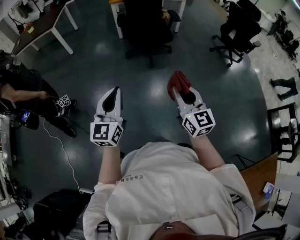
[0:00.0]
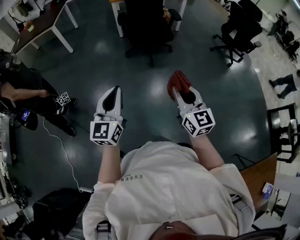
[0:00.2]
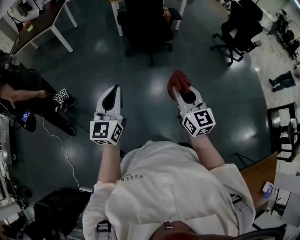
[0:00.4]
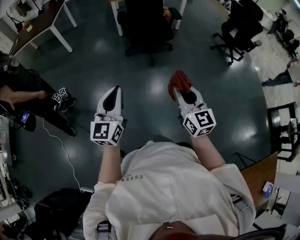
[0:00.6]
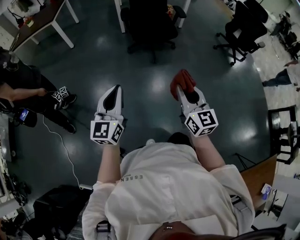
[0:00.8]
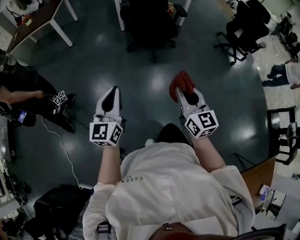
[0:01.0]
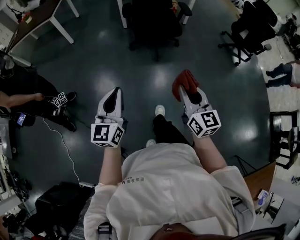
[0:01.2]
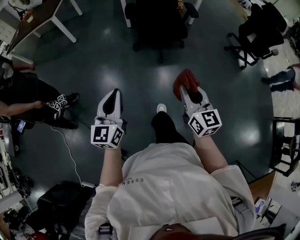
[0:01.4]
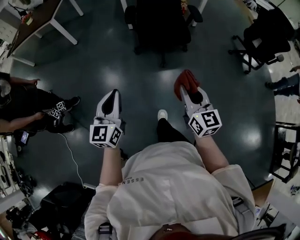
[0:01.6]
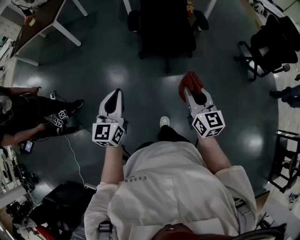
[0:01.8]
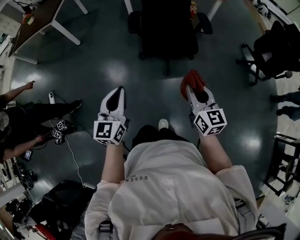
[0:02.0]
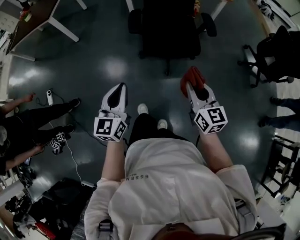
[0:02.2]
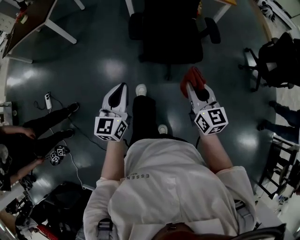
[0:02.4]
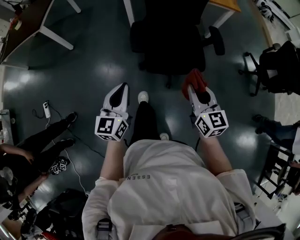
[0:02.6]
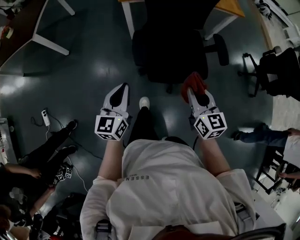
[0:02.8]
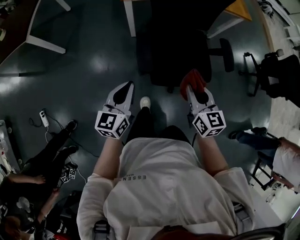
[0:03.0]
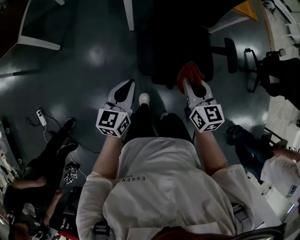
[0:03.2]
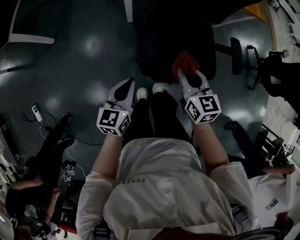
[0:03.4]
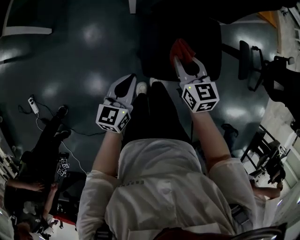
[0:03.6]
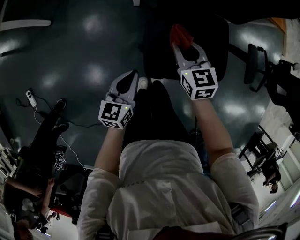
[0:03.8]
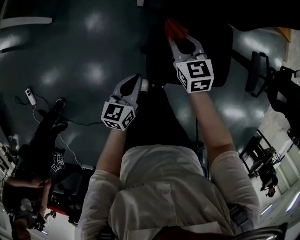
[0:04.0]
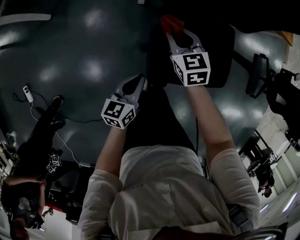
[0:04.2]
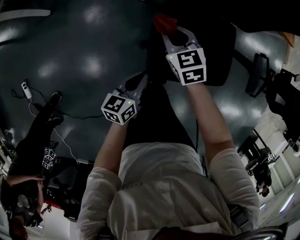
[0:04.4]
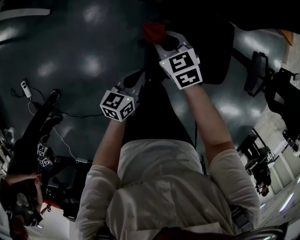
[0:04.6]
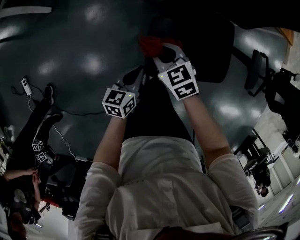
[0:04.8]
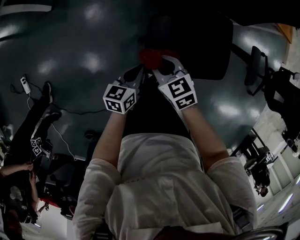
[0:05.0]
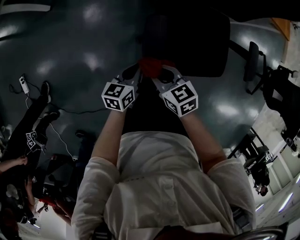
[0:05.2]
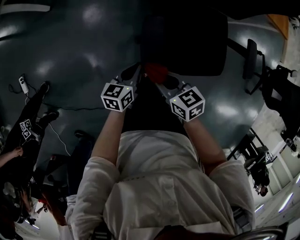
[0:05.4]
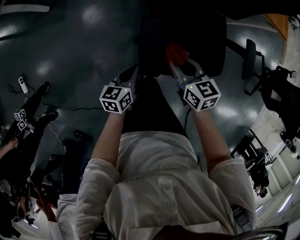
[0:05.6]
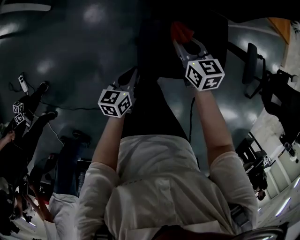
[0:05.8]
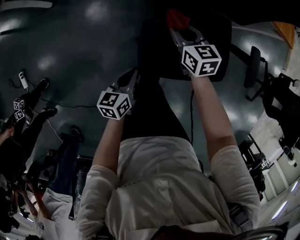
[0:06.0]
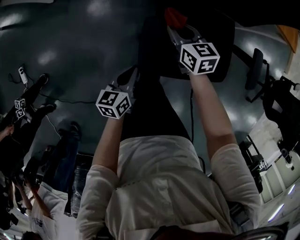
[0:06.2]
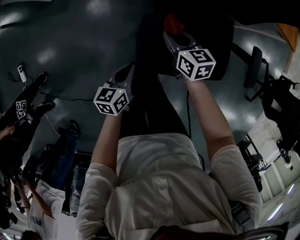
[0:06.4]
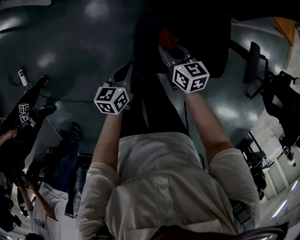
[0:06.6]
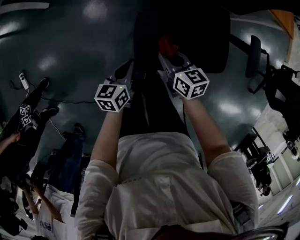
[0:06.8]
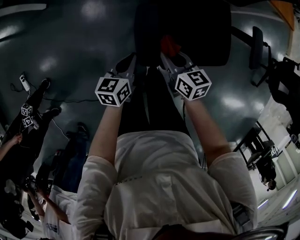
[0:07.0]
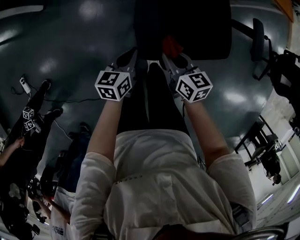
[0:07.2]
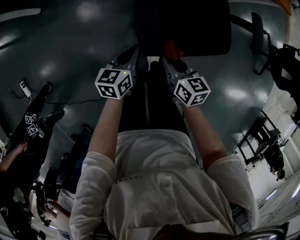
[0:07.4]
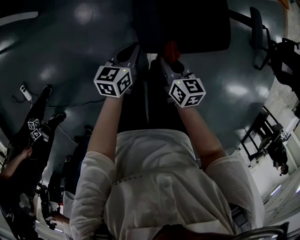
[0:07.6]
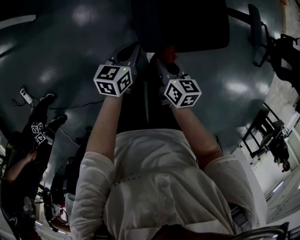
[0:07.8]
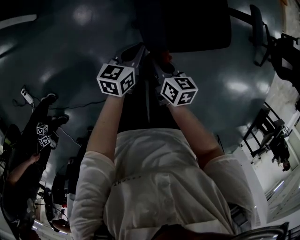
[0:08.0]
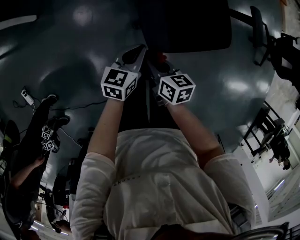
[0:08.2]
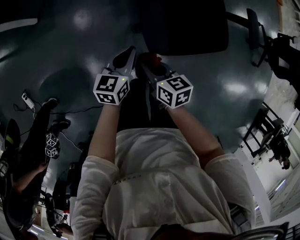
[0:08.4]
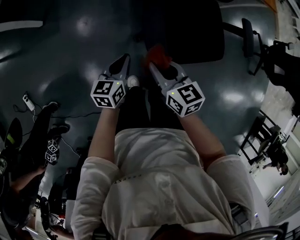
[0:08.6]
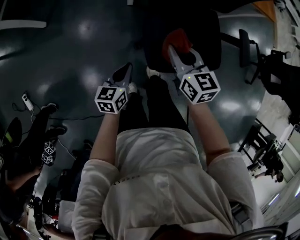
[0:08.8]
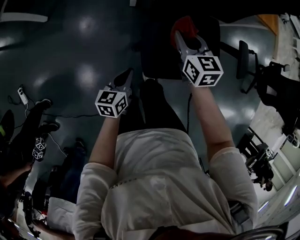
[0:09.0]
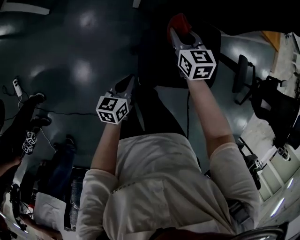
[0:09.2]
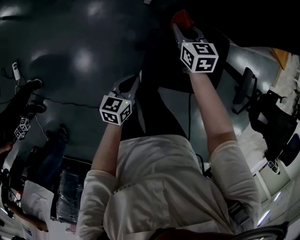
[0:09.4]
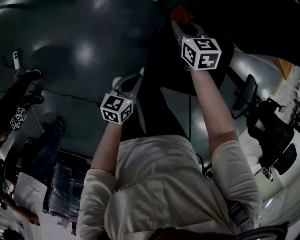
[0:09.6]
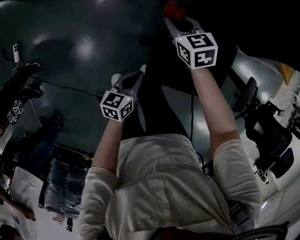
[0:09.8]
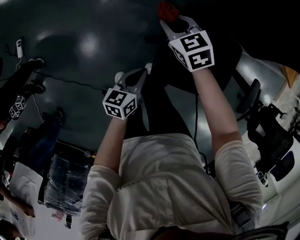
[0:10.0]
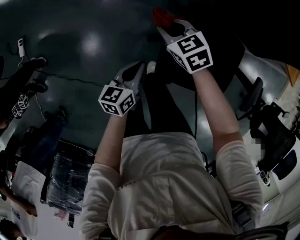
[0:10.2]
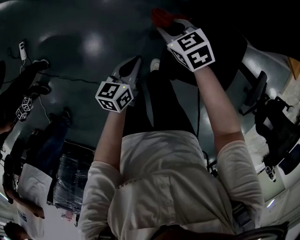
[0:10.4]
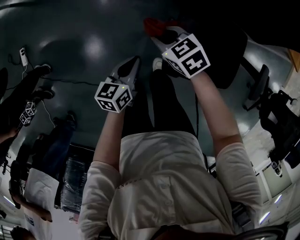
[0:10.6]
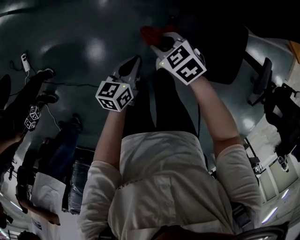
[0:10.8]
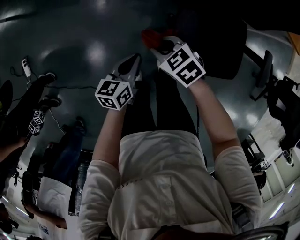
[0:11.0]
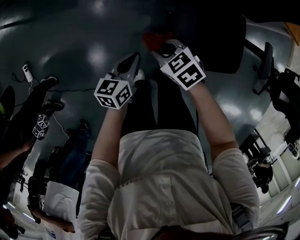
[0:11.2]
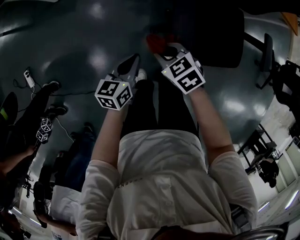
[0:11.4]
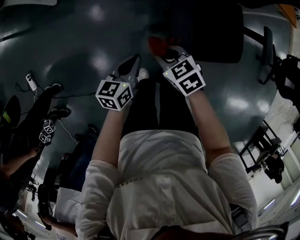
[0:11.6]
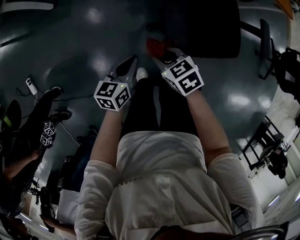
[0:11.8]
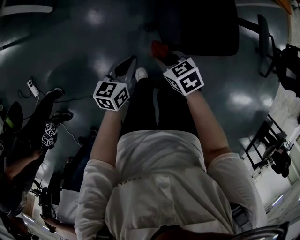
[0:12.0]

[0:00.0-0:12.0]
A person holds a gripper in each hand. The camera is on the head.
0:00.0 to 0:01.6: Both grippers move forward, some 25 cm.
0:01.6 to 0:03.0: The pair of grippers is taken forward, some 50 cm.
0:03.0 to 0:04.4: The left gripper goes some 25 cm downward and forward, and turns by about 30 degrees, while the right gripper heads forward, downward and to the left, covering some 35 cm, and changes its angle by some 30 degrees.
0:04.4 to 0:06.0: The right gripper is displaced to the right by roughly 5 cm, and travels backward and back again, some 20 cm each way.
0:06.0 to 0:07.6: The right gripper shifts some 25 cm backward, and swivels about 30 degrees.
0:07.6 to 0:09.0: The right gripper travels forward and upward by roughly 25 cm, and swivels about 20 degrees.
0:09.0 to 0:10.4: The right gripper moves some 20 cm, and turns by approximately 50 degrees.
0:10.4 to 0:12.0: The left gripper is displaced backward by about 5 cm, and rotates some 20 degrees. The right gripper travels backward by about 20 cm, and turns by some 30 degrees.

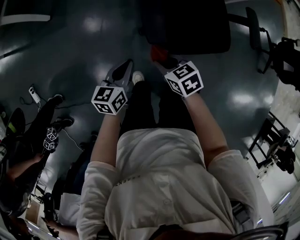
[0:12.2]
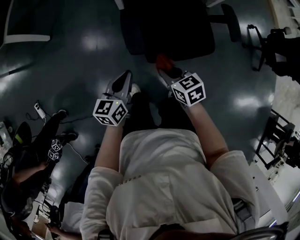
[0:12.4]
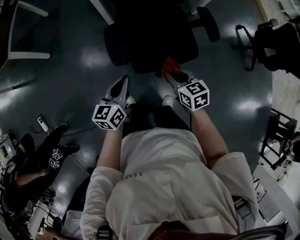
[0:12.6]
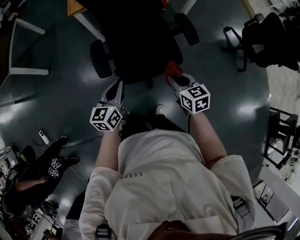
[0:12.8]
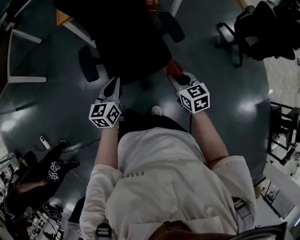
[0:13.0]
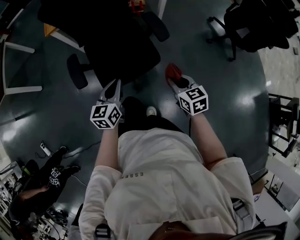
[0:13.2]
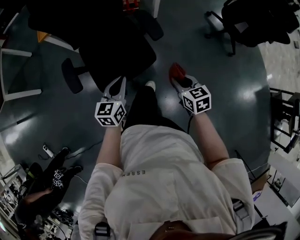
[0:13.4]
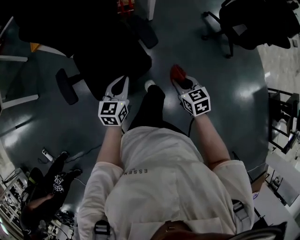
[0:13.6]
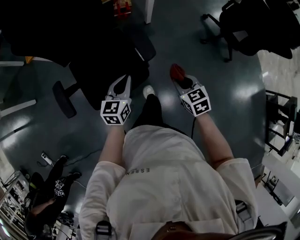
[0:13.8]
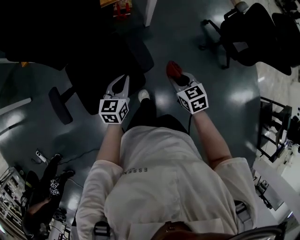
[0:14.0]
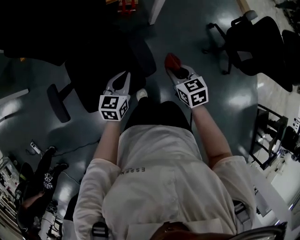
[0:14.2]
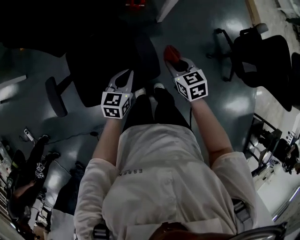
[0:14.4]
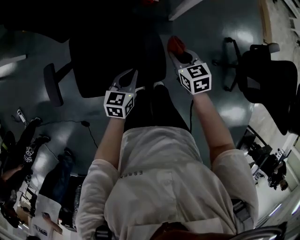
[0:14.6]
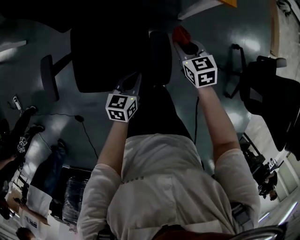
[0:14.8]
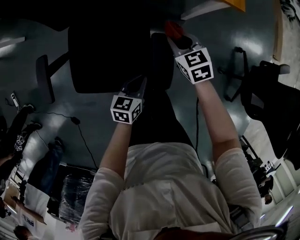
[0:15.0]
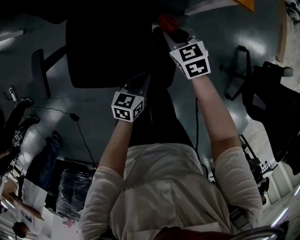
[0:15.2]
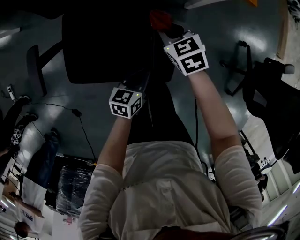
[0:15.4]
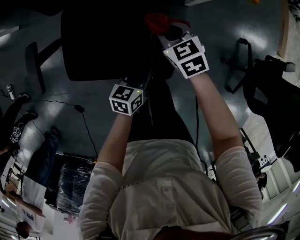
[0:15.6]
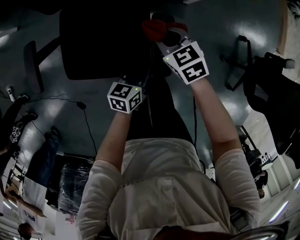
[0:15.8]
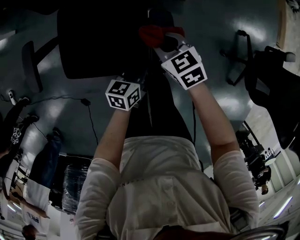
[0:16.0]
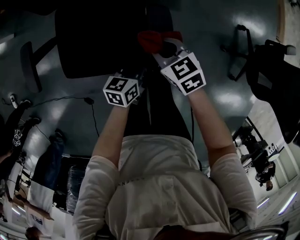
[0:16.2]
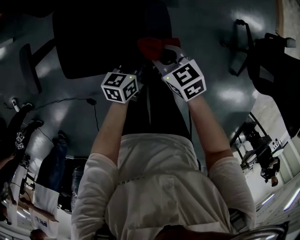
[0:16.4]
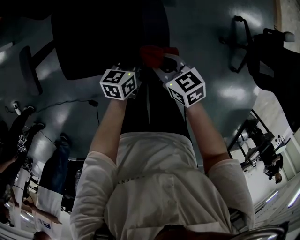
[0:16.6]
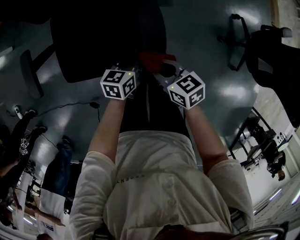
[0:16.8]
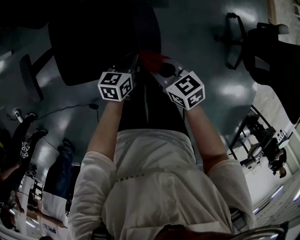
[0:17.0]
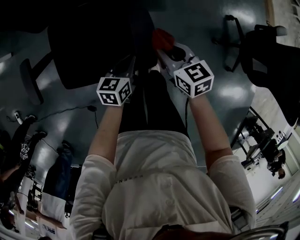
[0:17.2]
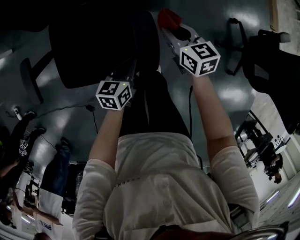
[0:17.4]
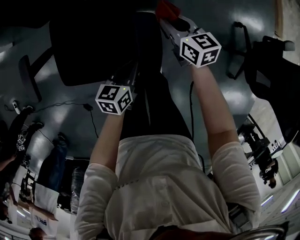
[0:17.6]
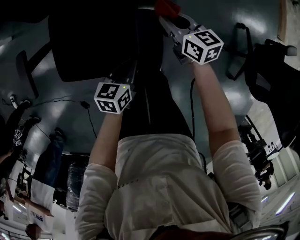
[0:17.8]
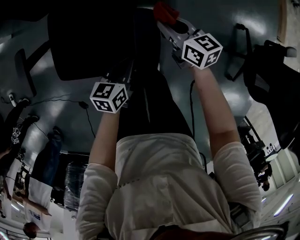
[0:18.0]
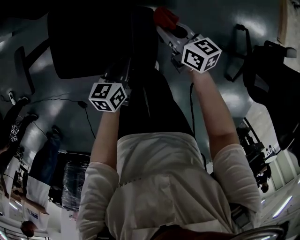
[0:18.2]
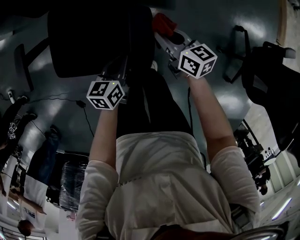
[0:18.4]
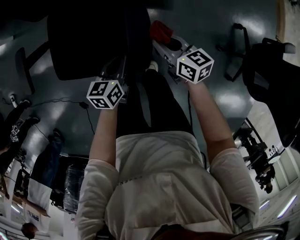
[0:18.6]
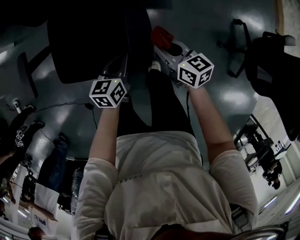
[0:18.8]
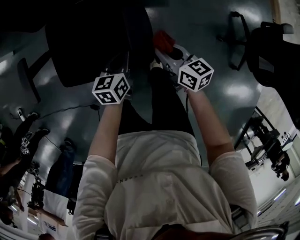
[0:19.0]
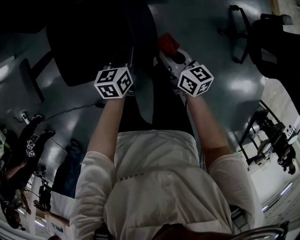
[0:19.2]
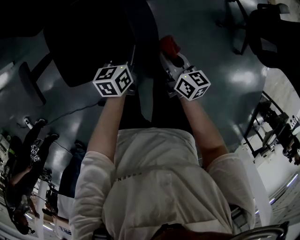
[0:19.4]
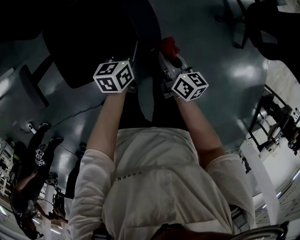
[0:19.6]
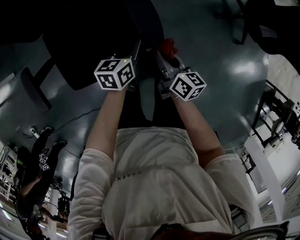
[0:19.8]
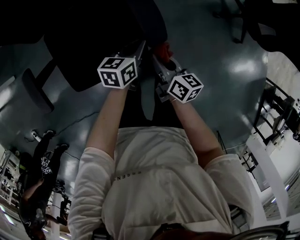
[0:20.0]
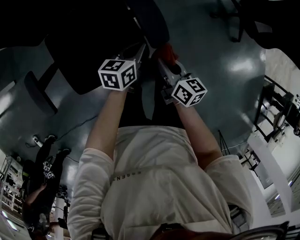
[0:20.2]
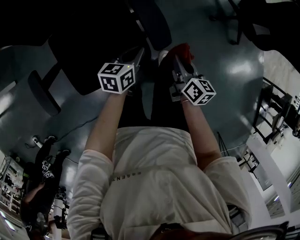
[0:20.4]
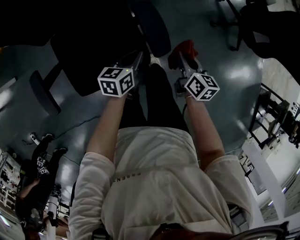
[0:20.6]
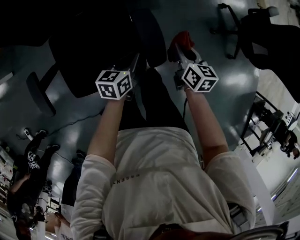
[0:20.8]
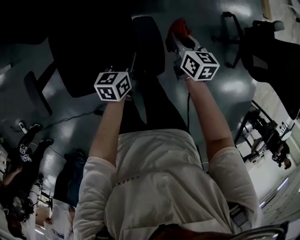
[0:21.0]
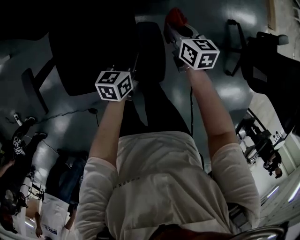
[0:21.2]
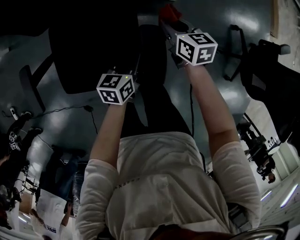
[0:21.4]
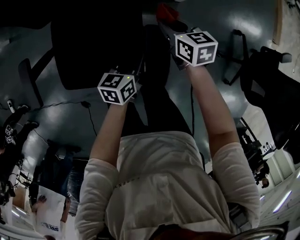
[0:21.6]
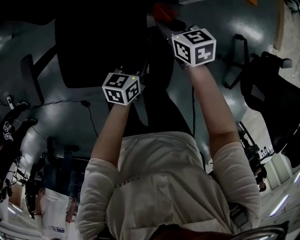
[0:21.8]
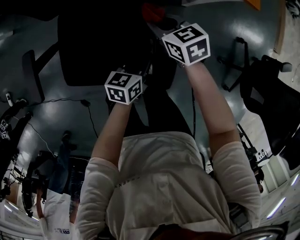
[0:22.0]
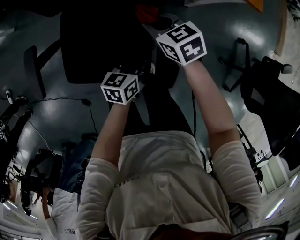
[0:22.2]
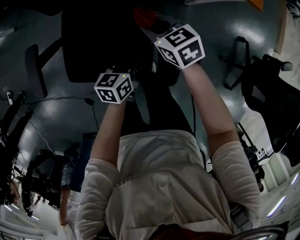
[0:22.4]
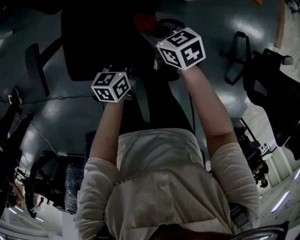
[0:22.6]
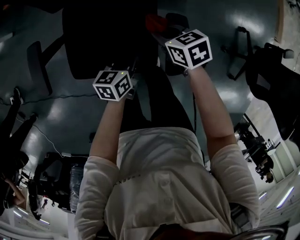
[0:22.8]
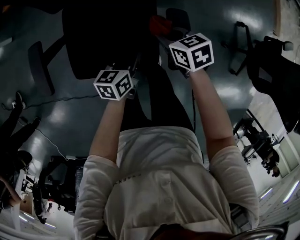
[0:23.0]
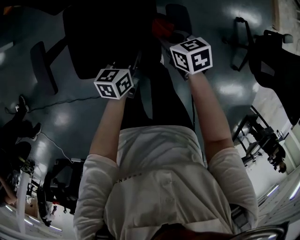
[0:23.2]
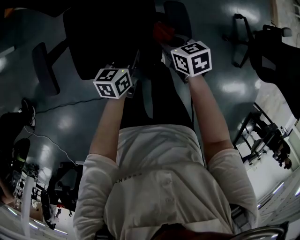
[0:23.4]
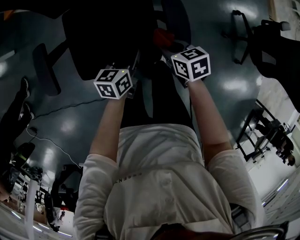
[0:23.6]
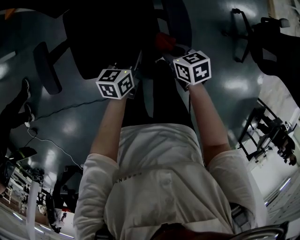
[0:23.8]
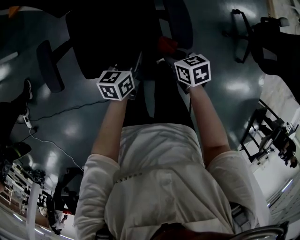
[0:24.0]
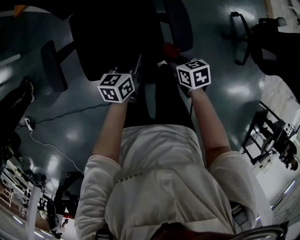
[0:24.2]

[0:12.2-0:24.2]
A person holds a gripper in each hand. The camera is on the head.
0:12.2 to 0:13.8: Both grippers are carried some 50 cm. The right gripper swivels roughly 30 degrees. Meanwhile the left gripper turns by about 20 degrees.
0:13.8 to 0:15.2: The left gripper heads downward, forward and to the right, covering roughly 20 cm, and rotates about 30 degrees. Meanwhile the right gripper travels forward by approximately 35 cm, and changes its angle by approximately 30 degrees.
0:15.2 to 0:16.6: The right gripper is displaced backward by about 20 cm, and turns by about 30 degrees.
0:16.6 to 0:18.2: The right gripper heads forward and to the right, covering approximately 15 cm.
0:18.2 to 0:19.8: The right gripper moves some 20 cm, and turns by some 40 degrees. Meanwhile the left gripper swivels some 20 degrees.
0:19.8 to 0:21.2: The right gripper is displaced forward by about 25 cm, and changes its angle by approximately 30 degrees; the left gripper shifts about 10 cm forward.
0:21.2 to 0:22.6: The right gripper changes place by roughly 20 cm, and swivels approximately 40 degrees. The left gripper changes place by roughly 10 cm.
0:22.6 to 0:24.2: The right gripper heads backward, covering some 20 cm, and turns by roughly 30 degrees. The left gripper is displaced backward by approximately 10 cm.
